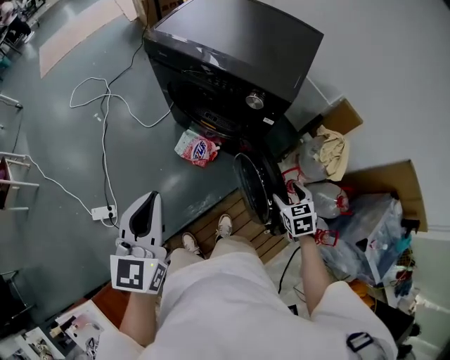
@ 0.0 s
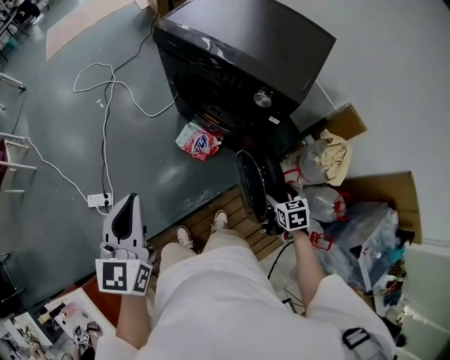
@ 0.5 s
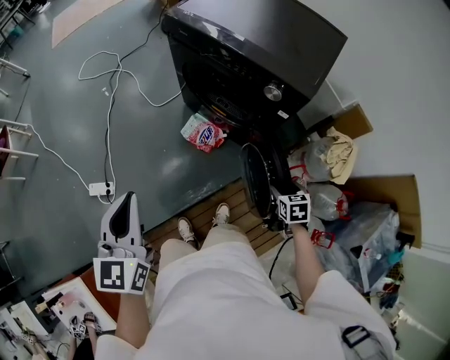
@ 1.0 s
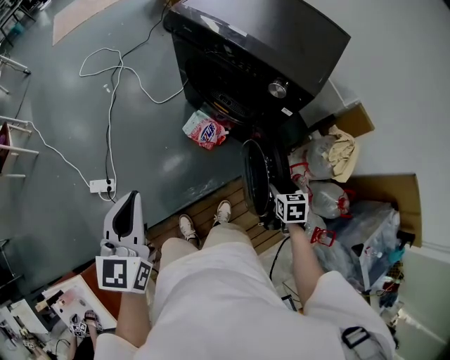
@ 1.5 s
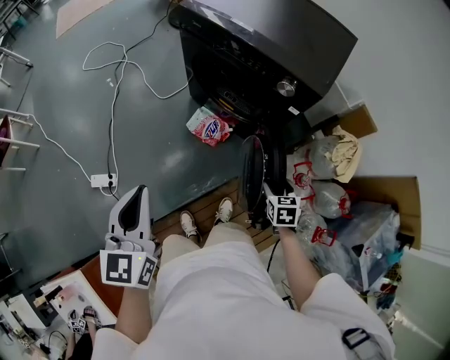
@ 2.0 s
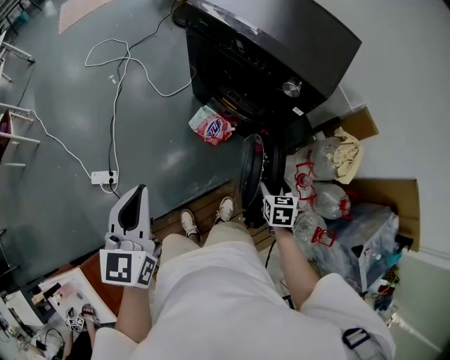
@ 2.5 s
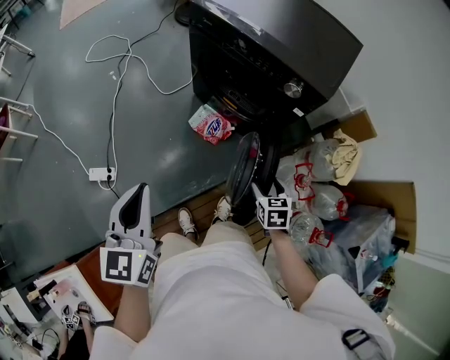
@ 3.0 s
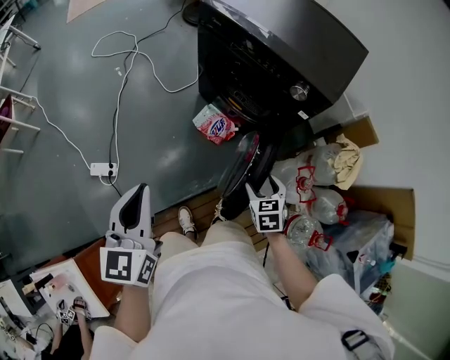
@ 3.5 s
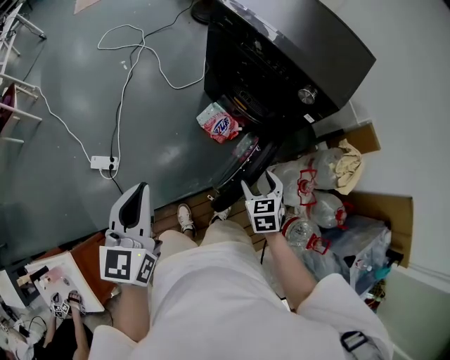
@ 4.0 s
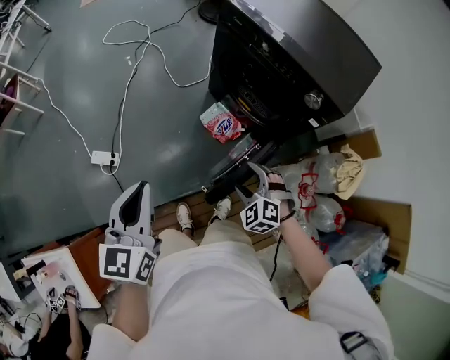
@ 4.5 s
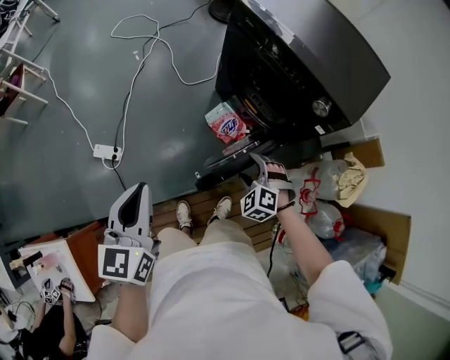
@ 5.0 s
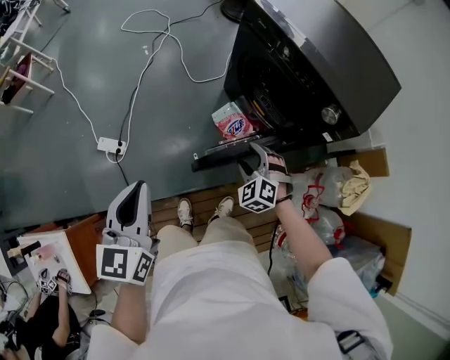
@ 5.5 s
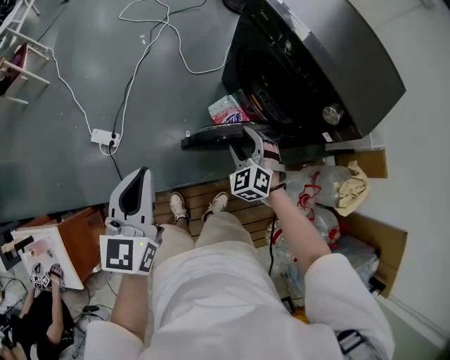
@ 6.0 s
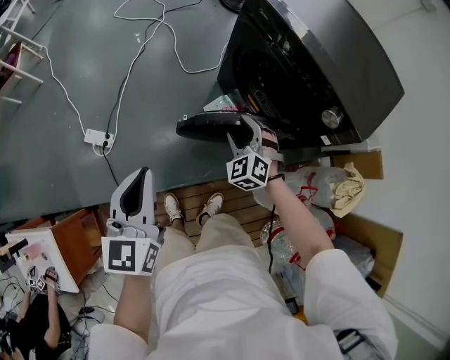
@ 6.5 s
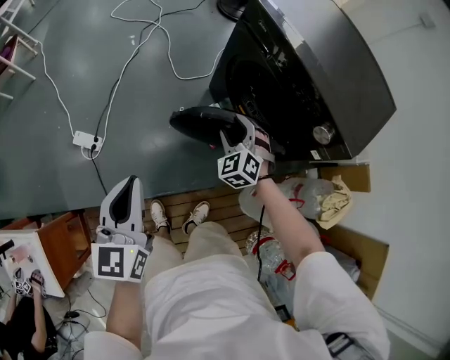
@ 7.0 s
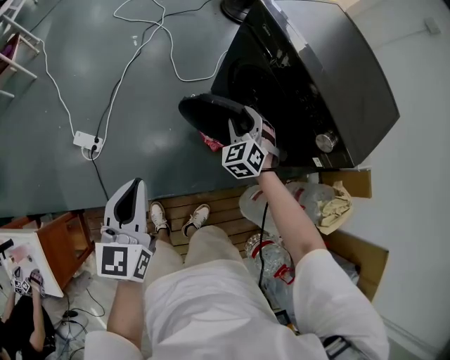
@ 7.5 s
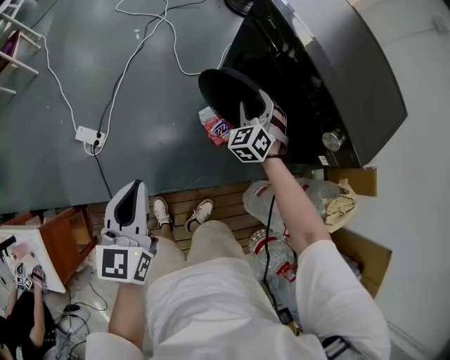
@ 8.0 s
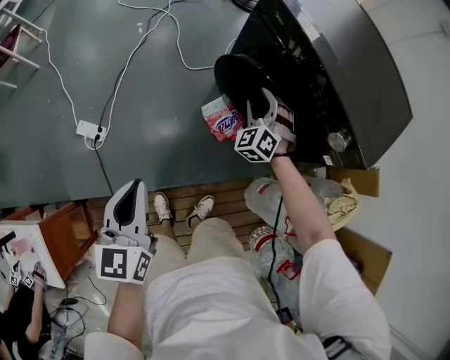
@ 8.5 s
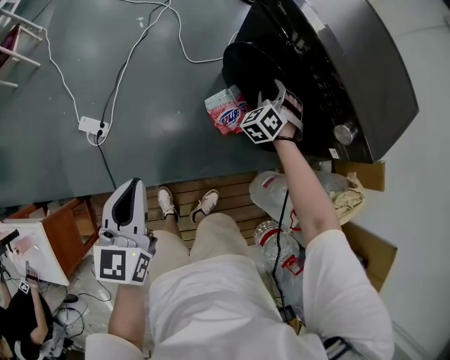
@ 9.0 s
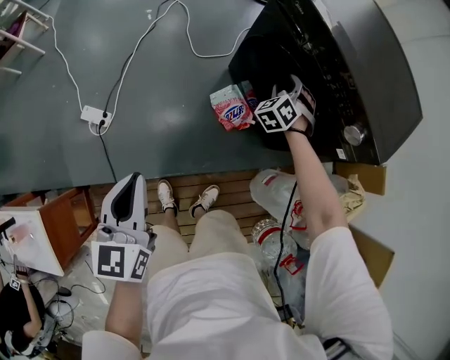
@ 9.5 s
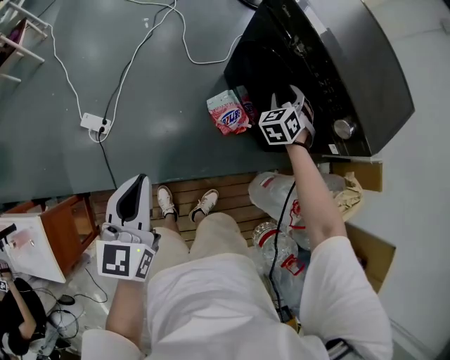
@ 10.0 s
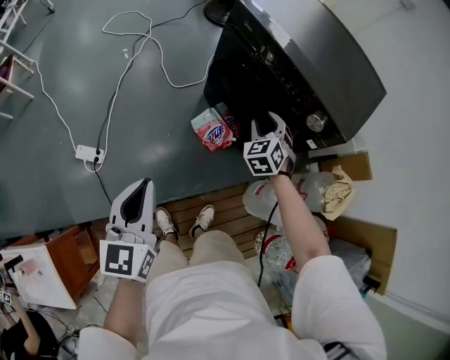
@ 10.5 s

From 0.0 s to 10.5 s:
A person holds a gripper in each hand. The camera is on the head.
From 0.0 s to 2.0 s: The grippers both shift to the left by approximately 10 cm.
From 2.0 s to 4.0 s: The right gripper travels to the left by approximately 15 cm, and turns by roughly 20 degrees, while the left gripper shifts some 5 cm to the left.
From 4.0 s to 6.5 s: The left gripper heads forward and downward, covering approximately 5 cm; the right gripper is displaced forward and to the left by some 20 cm, and rolls counterclockwise, seen from behind, by some 50 degrees.
From 6.5 s to 8.5 s: The right gripper heads forward, covering roughly 15 cm; the left gripper is displaced downward by approximately 5 cm.
From 8.5 s to 10.5 s: The left gripper moves upward, some 5 cm. Meanwhile the right gripper heads to the right, backward and upward, covering roughly 10 cm, and changes its angle by about 20 degrees.

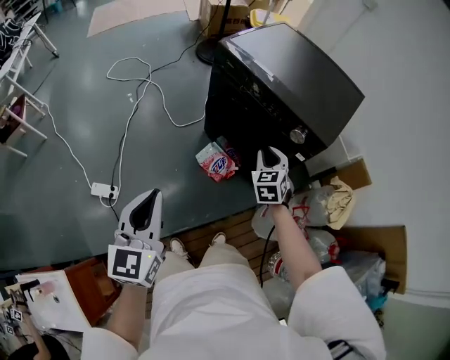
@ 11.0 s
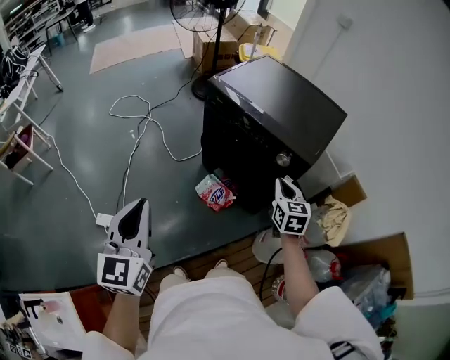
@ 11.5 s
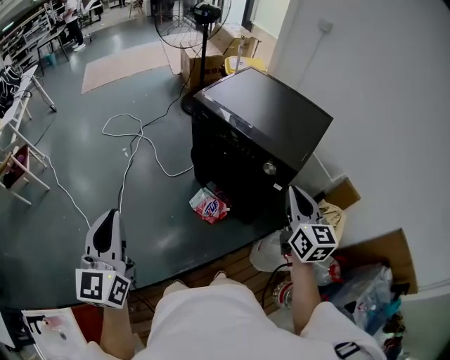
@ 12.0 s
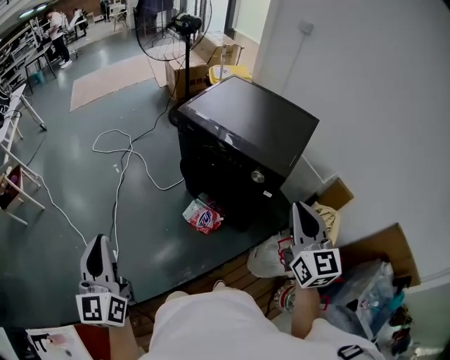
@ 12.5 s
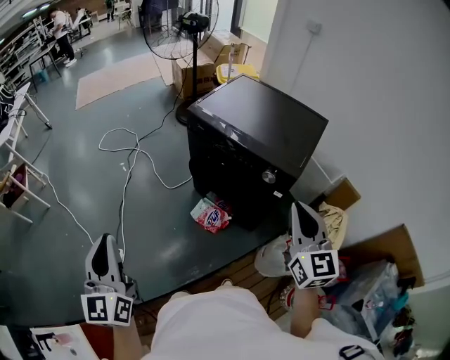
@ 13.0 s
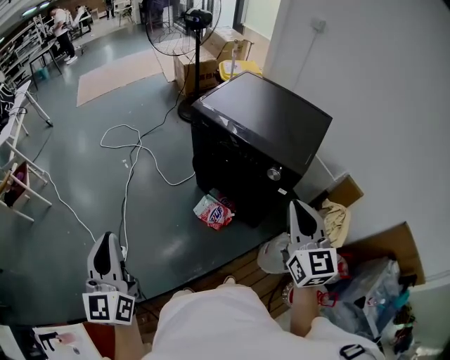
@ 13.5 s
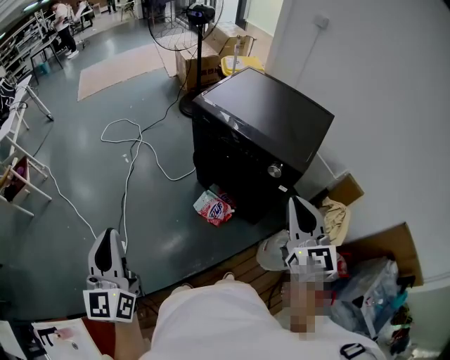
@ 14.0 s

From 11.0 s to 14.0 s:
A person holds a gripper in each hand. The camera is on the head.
From 11.0 s to 12.5 s: The right gripper travels upward, backward and to the right by roughly 35 cm, and angles its fingers upward, by about 30 degrees. The left gripper goes approximately 15 cm upward and to the left.
From 12.5 s to 14.0 s: The right gripper is displaced to the left by roughly 5 cm.

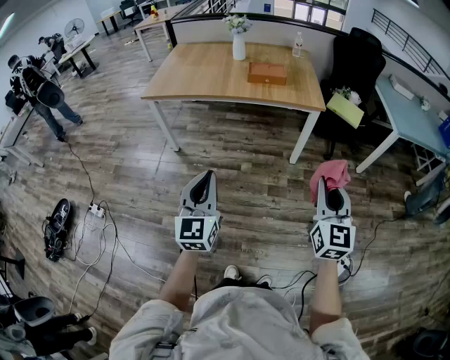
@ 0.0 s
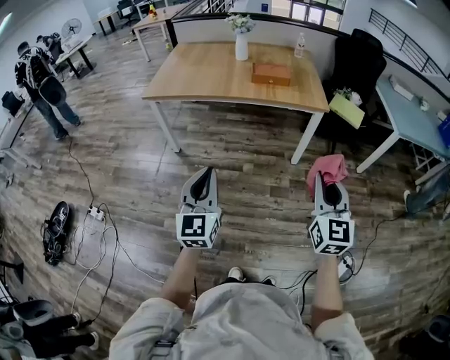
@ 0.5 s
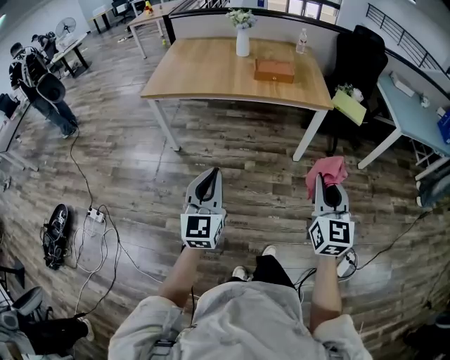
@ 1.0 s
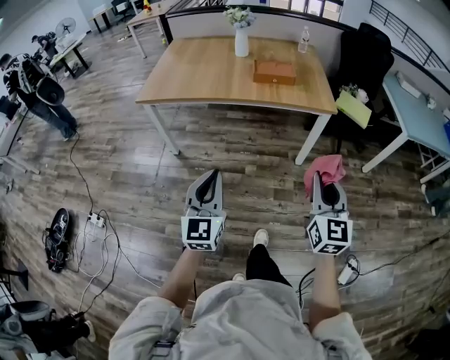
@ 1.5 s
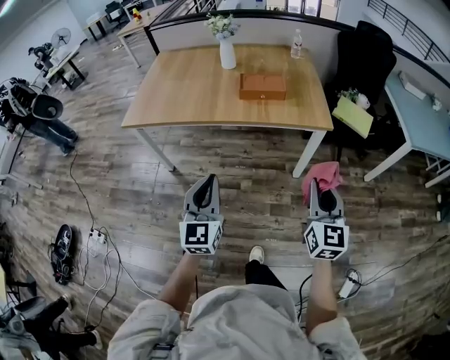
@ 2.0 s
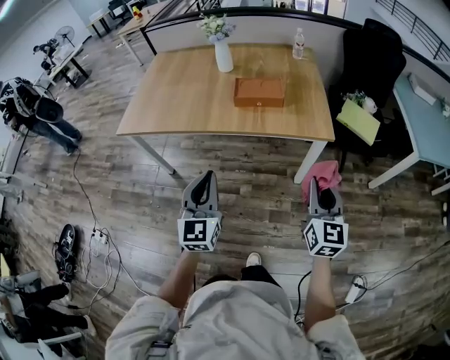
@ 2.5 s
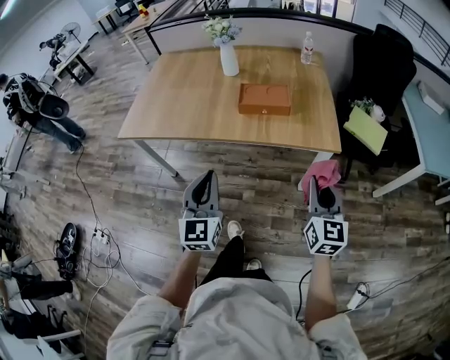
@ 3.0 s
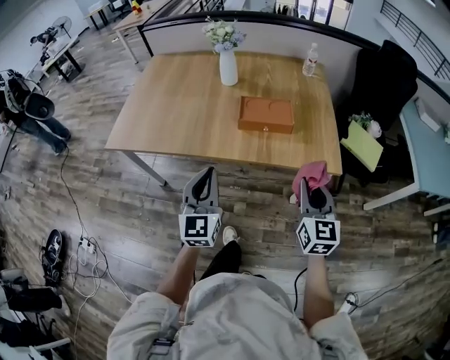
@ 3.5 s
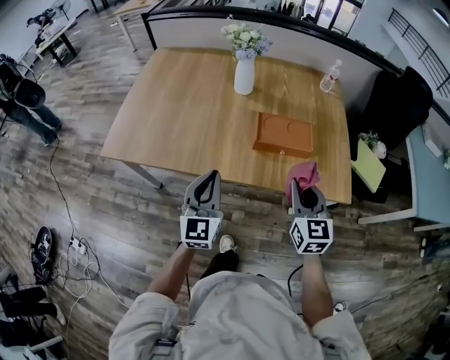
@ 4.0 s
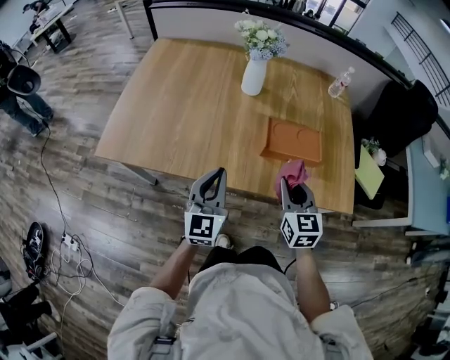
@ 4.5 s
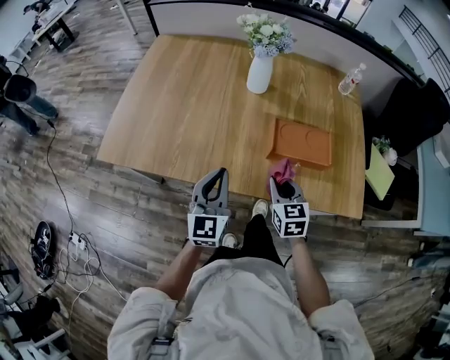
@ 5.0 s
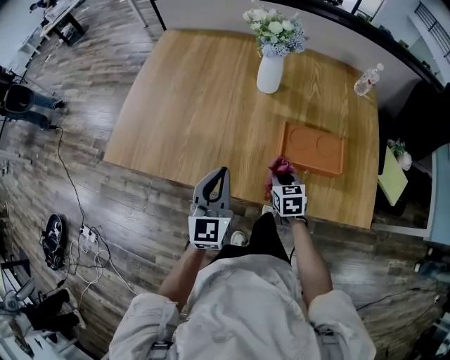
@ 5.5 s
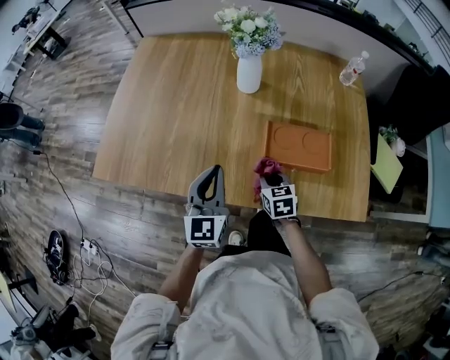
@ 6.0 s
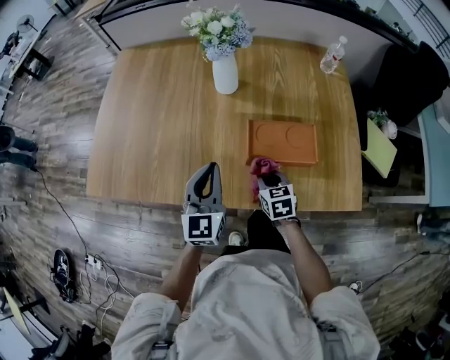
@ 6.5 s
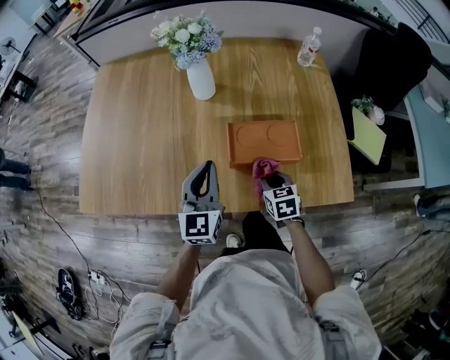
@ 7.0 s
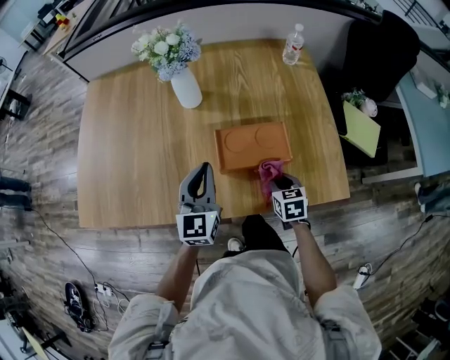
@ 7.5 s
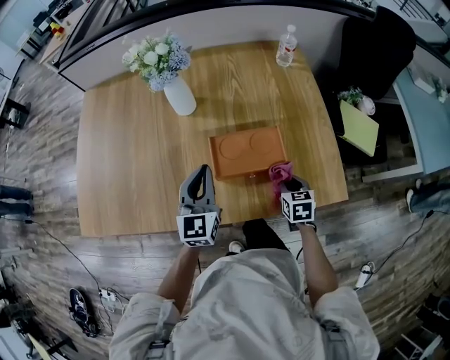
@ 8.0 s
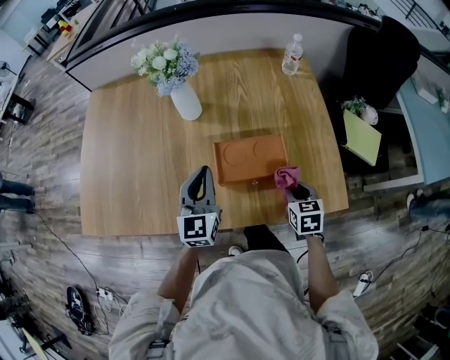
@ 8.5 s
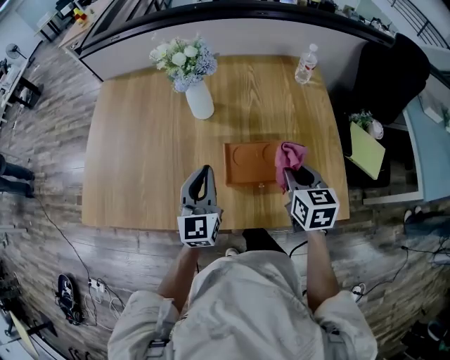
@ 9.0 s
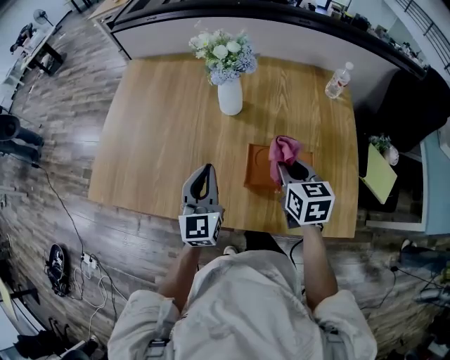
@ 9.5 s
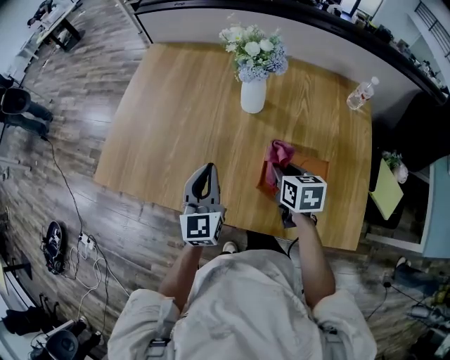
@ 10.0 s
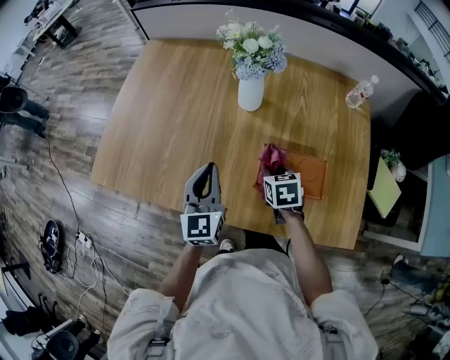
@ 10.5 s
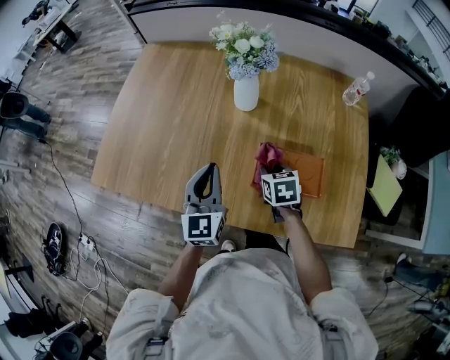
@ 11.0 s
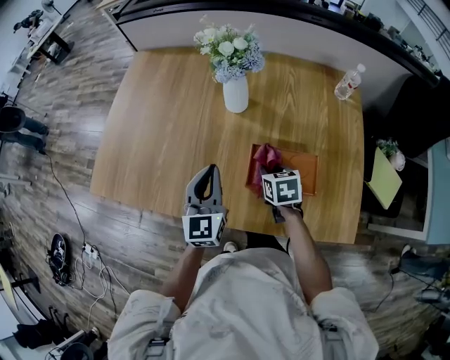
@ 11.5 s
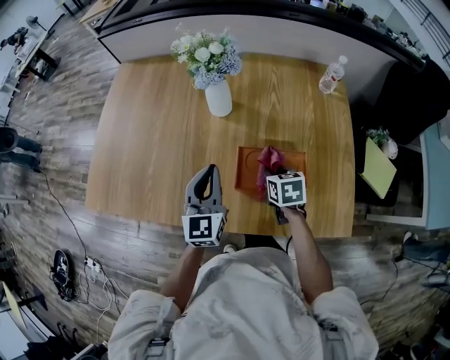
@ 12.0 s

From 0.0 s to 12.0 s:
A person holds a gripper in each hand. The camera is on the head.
From 0.0 s to 2.0 s: Both grippers travel together forward, roughly 20 cm.
From 2.0 s to 4.0 s: The two grippers go roughly 35 cm forward.
From 4.0 s to 6.0 s: The right gripper is displaced downward, forward and to the left by approximately 30 cm, and turns by about 30 degrees, while the left gripper is displaced forward by approximately 15 cm.
From 6.0 s to 8.0 s: The left gripper is displaced to the right and forward by approximately 15 cm. Meanwhile the right gripper shifts approximately 20 cm to the right, and changes its angle by about 20 degrees.
From 8.0 s to 10.0 s: The left gripper ends up some 15 cm from where it was, and changes its angle by some 20 degrees; the right gripper moves approximately 25 cm, and rotates about 20 degrees.
From 10.0 s to 12.0 s: The left gripper heads to the right, covering some 10 cm; the right gripper goes about 10 cm downward and to the right.

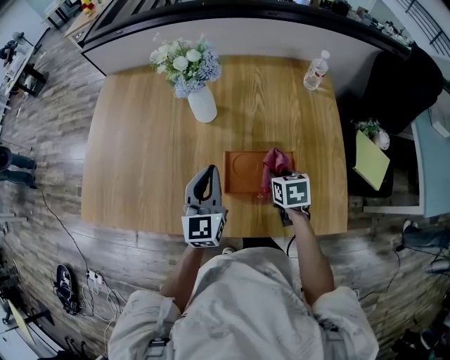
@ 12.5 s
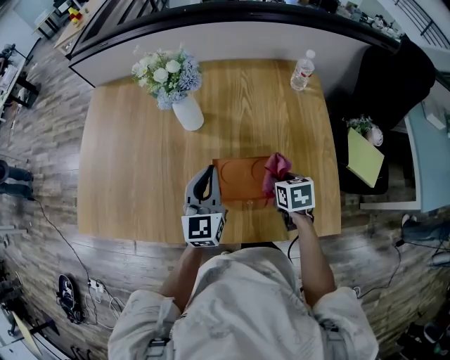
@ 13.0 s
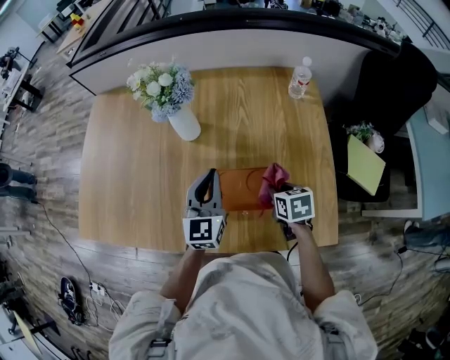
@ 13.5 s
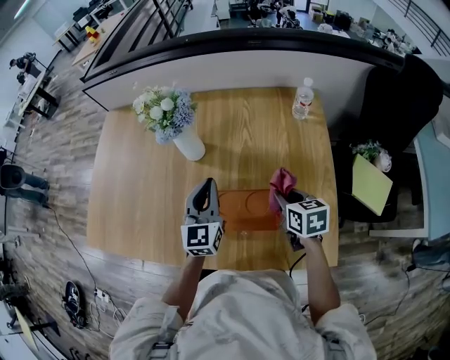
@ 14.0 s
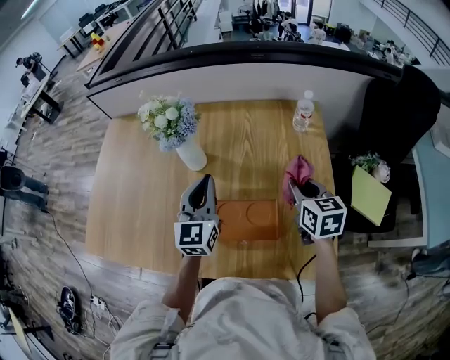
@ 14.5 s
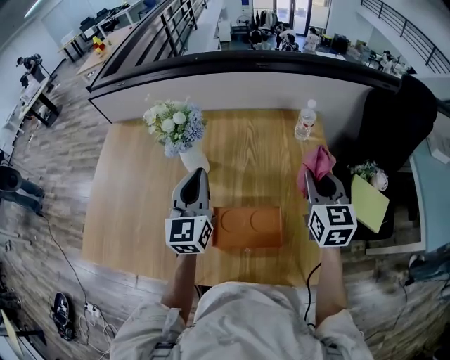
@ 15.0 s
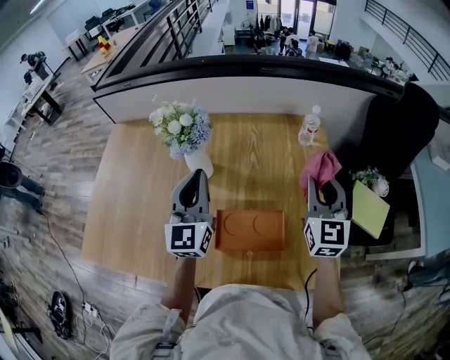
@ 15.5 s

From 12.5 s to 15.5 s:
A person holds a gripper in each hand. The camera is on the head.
From 12.5 s to 14.0 s: The left gripper shifts some 10 cm to the right and forward. Meanwhile the right gripper moves to the right and upward, approximately 10 cm.
From 14.0 s to 15.5 s: The right gripper goes about 15 cm upward, and points its fingers some 40 degrees further upward, while the left gripper moves upward, some 10 cm.
